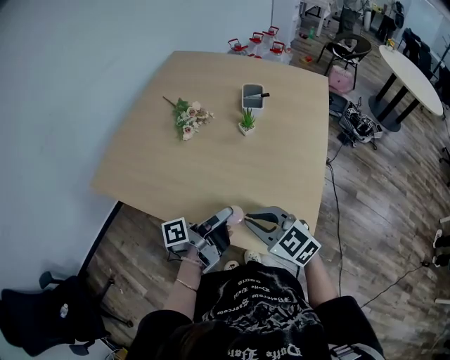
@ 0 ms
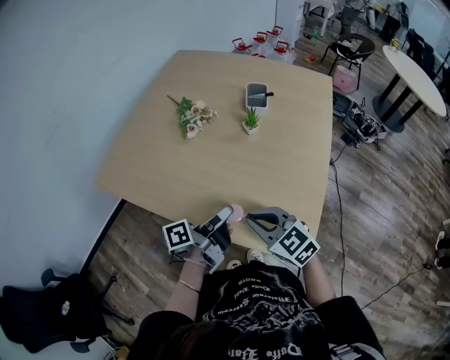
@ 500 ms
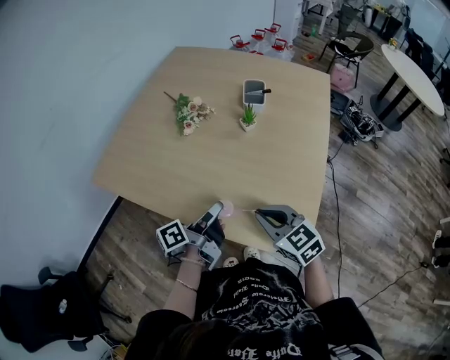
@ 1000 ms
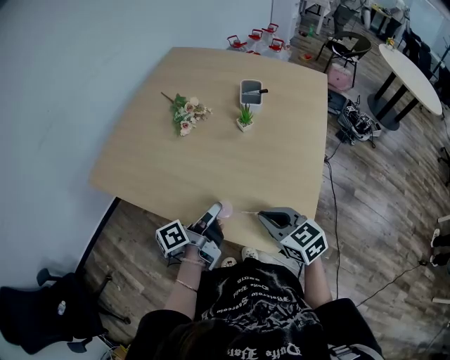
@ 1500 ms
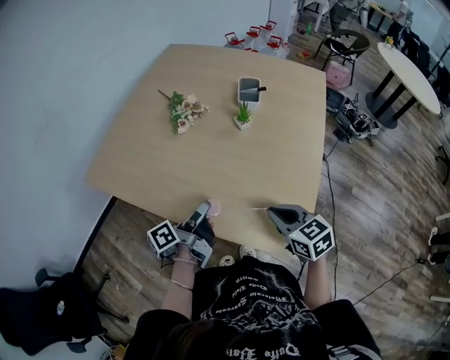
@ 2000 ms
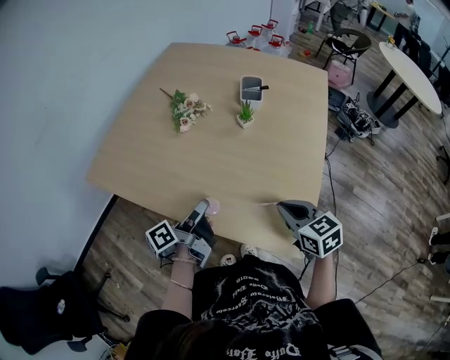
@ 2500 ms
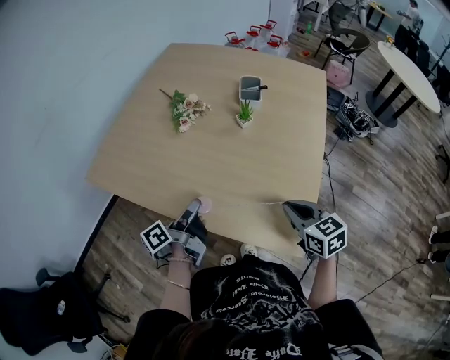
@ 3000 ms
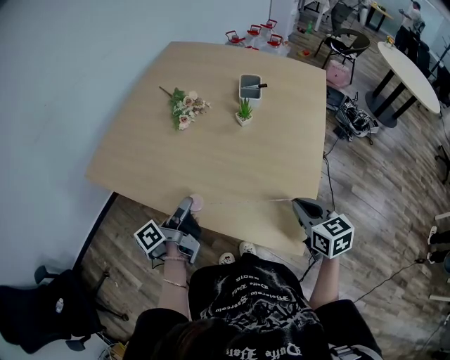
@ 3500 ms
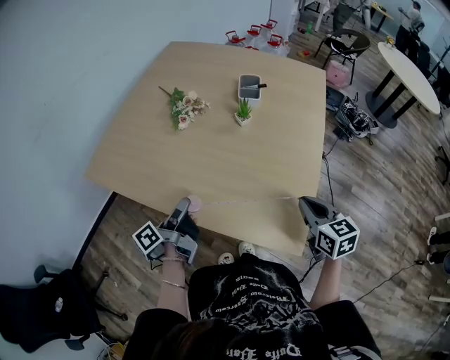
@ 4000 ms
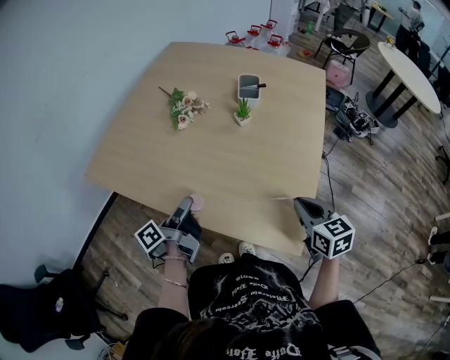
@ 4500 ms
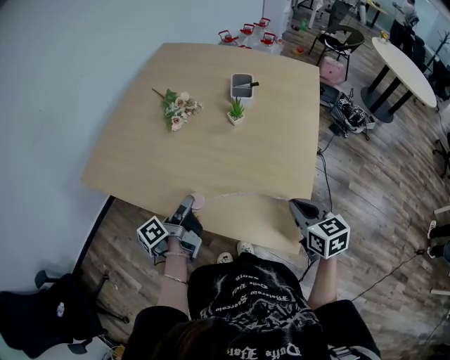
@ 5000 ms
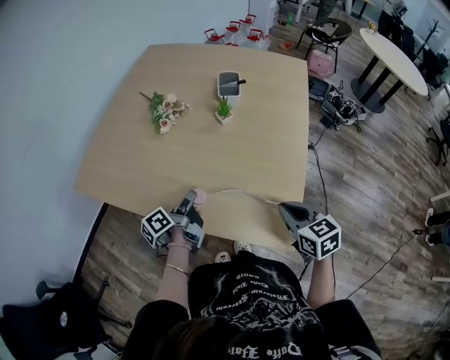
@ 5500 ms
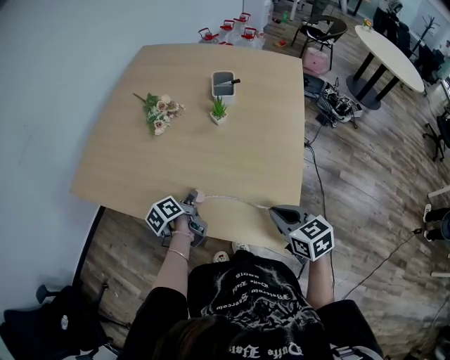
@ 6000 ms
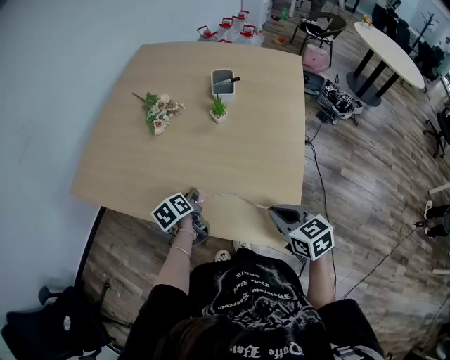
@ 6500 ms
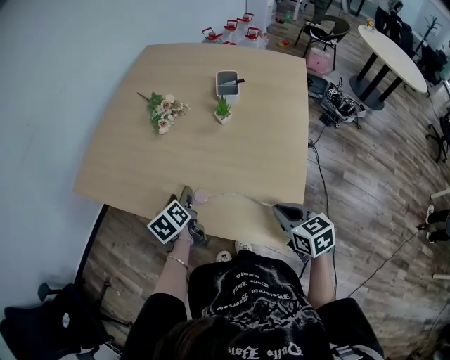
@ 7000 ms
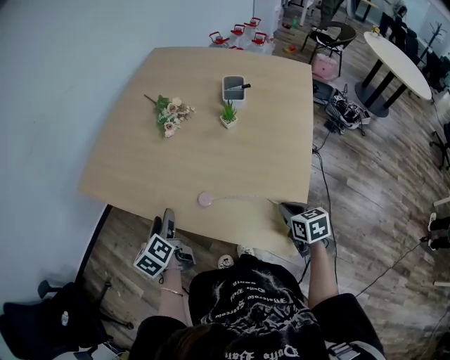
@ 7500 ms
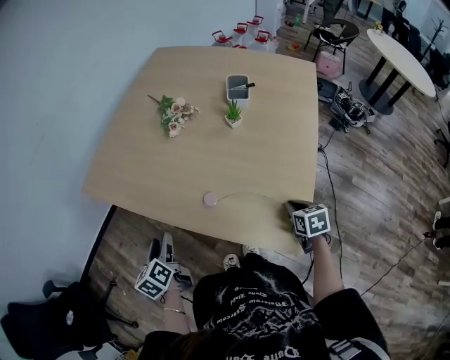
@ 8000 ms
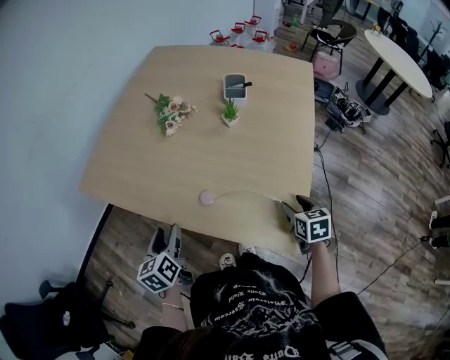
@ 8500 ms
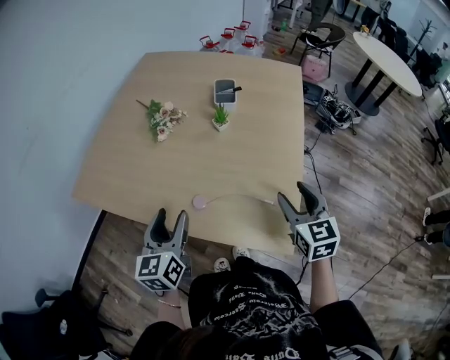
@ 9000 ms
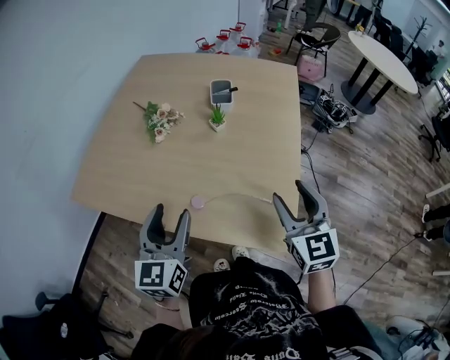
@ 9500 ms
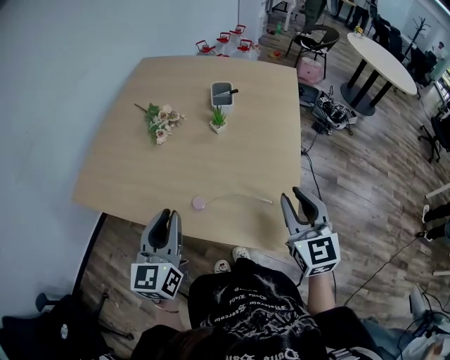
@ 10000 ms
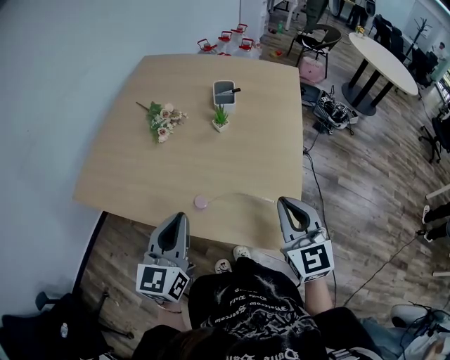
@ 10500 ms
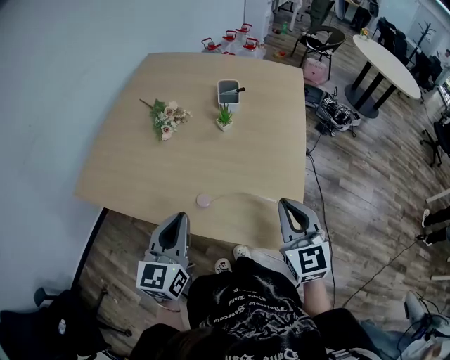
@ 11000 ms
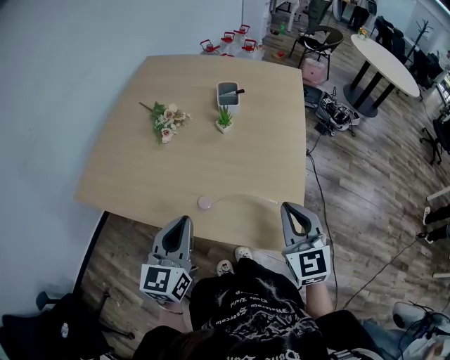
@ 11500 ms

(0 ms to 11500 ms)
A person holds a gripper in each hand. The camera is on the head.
0 ms - 2000 ms: The left gripper shifts roughly 5 cm to the left, while the right gripper travels to the right by approximately 10 cm, and changes its angle by approximately 20 degrees.
2000 ms - 4000 ms: The left gripper moves to the left, approximately 5 cm. Meanwhile the right gripper heads to the right, covering approximately 10 cm.
4000 ms - 6000 ms: The right gripper moves roughly 5 cm; the left gripper is displaced downward, to the right and forward by some 15 cm, and changes its angle by some 30 degrees.
6000 ms - 7500 ms: The left gripper heads to the left and upward, covering about 15 cm, swivels roughly 30 degrees, and opens, while the right gripper moves downward, roughly 5 cm.
7500 ms - 9500 ms: The left gripper shifts roughly 20 cm upward and to the right, and swivels approximately 50 degrees. The right gripper travels upward by some 20 cm, points its fingers roughly 30 degrees further upward, and opens.
9500 ms - 11500 ms: The left gripper closes its fingers. Meanwhile the right gripper closes its fingers.

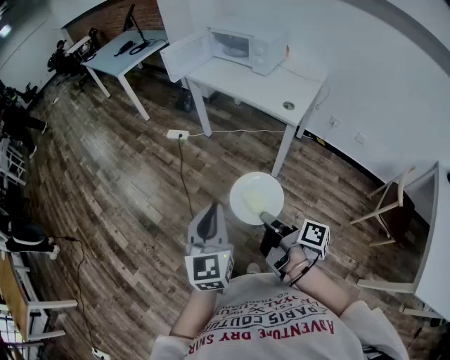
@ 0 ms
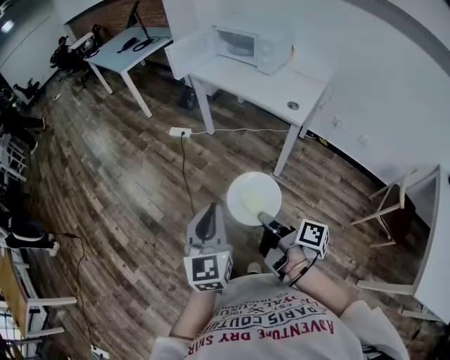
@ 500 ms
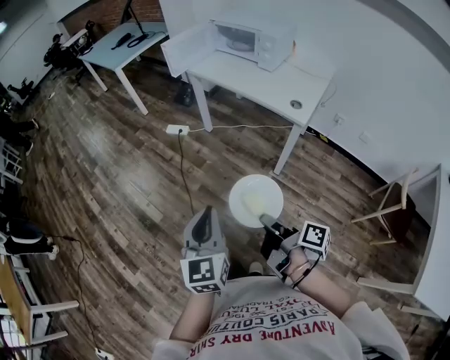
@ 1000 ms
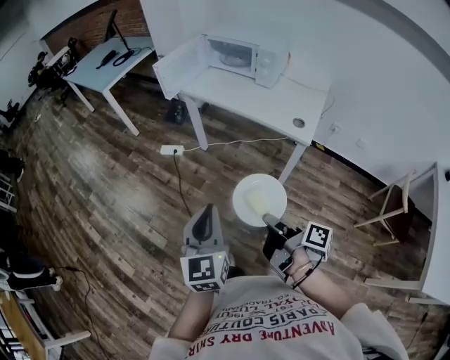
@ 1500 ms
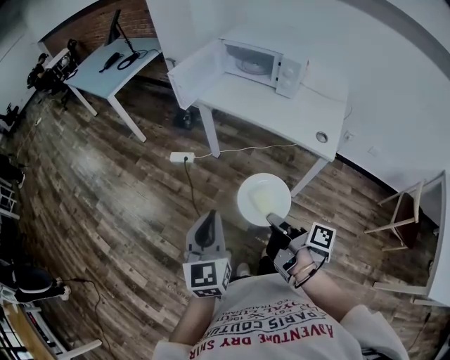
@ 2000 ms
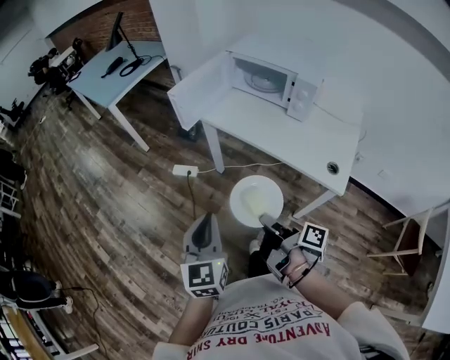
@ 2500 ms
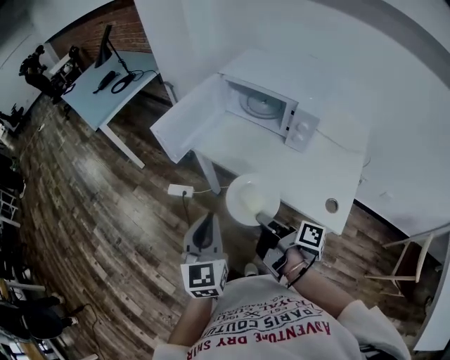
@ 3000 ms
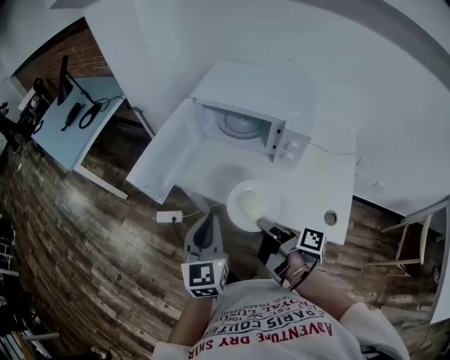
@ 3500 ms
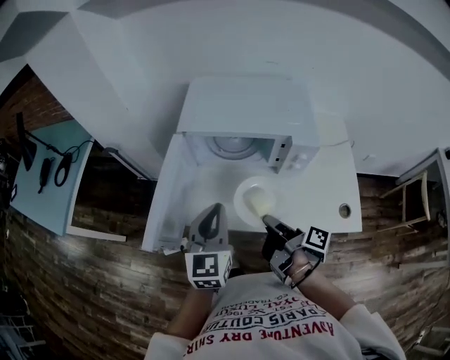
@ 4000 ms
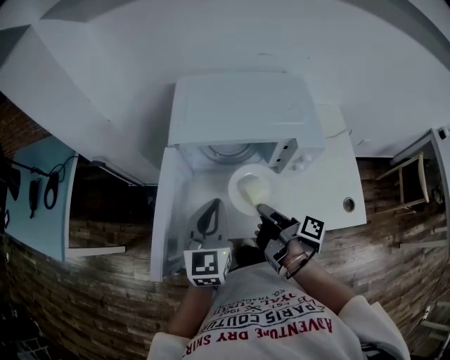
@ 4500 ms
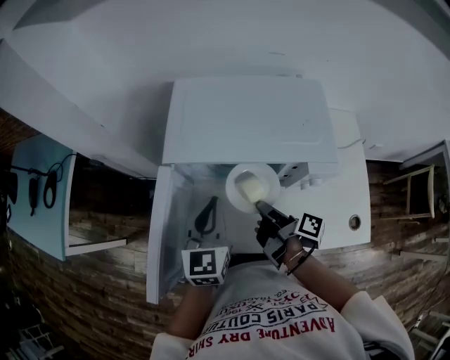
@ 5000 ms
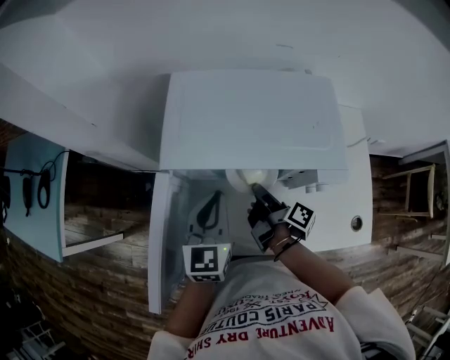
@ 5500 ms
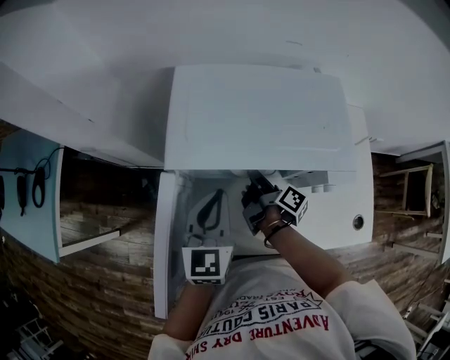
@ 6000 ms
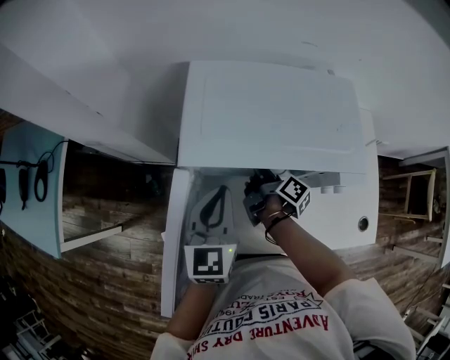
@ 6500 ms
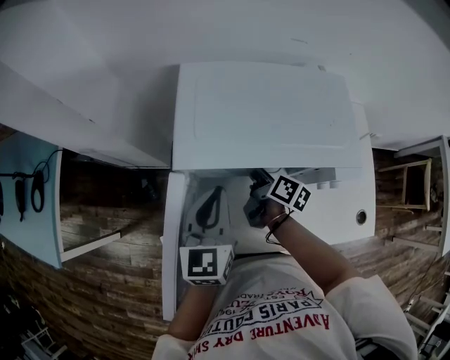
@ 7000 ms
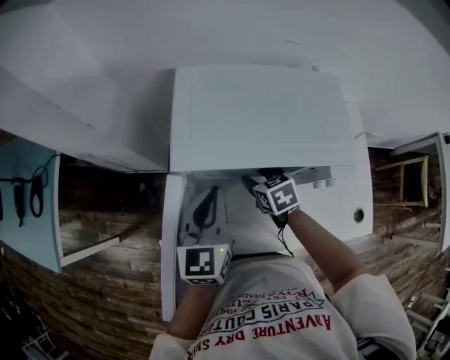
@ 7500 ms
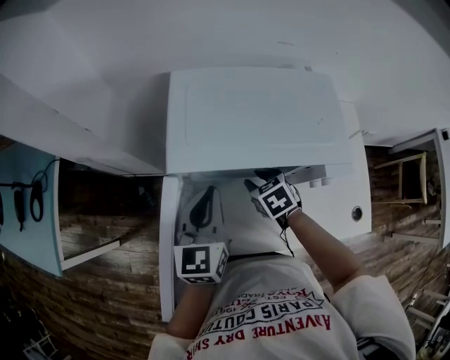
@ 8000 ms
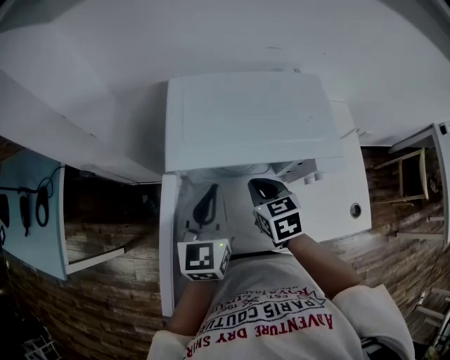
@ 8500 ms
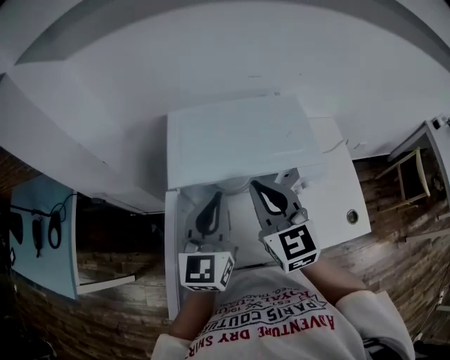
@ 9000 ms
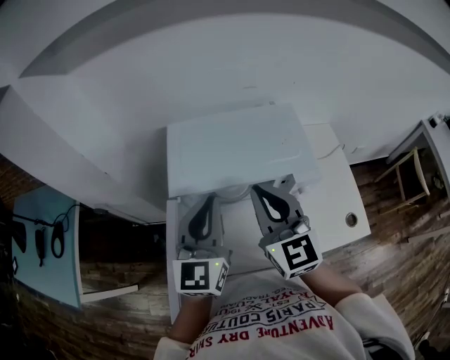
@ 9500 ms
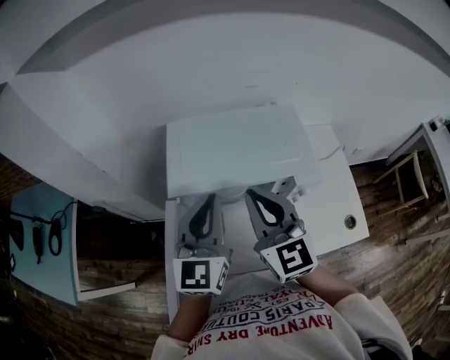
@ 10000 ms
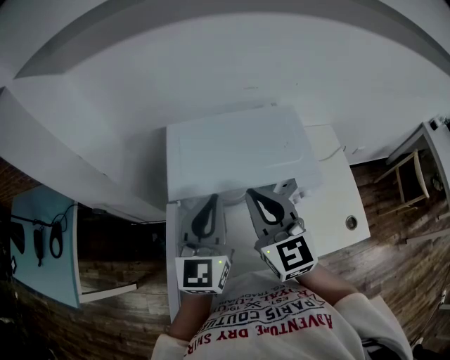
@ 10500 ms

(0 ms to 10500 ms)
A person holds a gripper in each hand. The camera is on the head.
0 ms - 2000 ms: The left gripper ends up approximately 30 cm from where it was.
2000 ms - 4000 ms: The left gripper changes place by approximately 60 cm, and rotates some 30 degrees.
4000 ms - 6500 ms: The left gripper moves some 20 cm.
8500 ms - 10500 ms: The left gripper travels upward by roughly 10 cm.

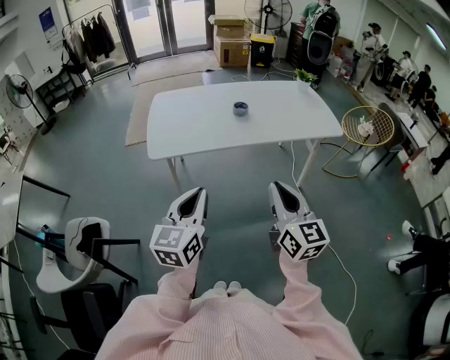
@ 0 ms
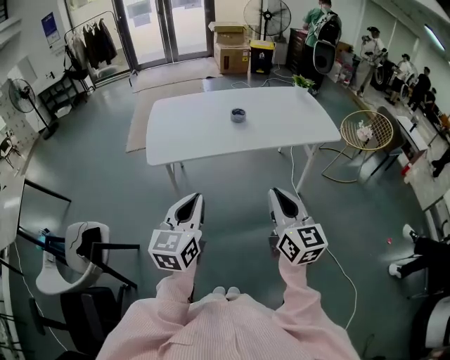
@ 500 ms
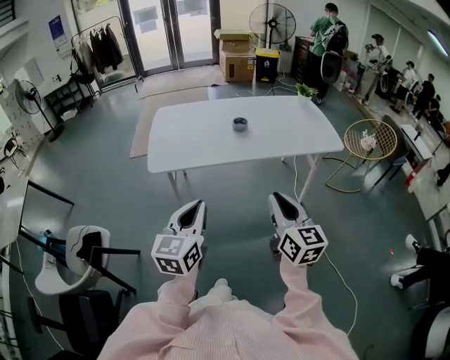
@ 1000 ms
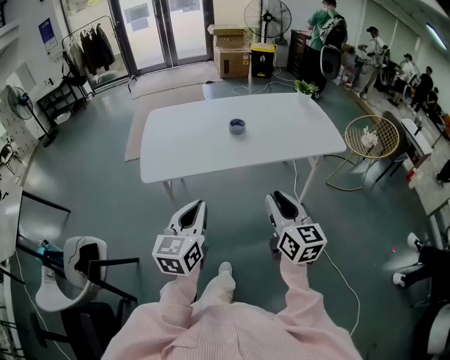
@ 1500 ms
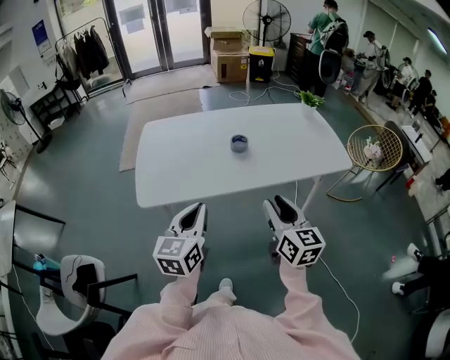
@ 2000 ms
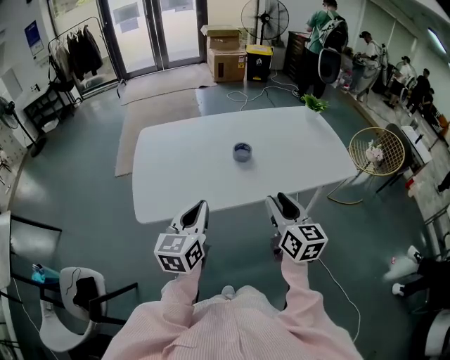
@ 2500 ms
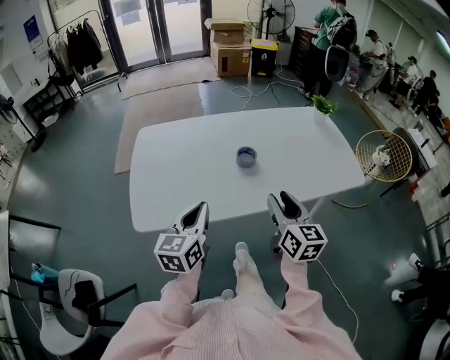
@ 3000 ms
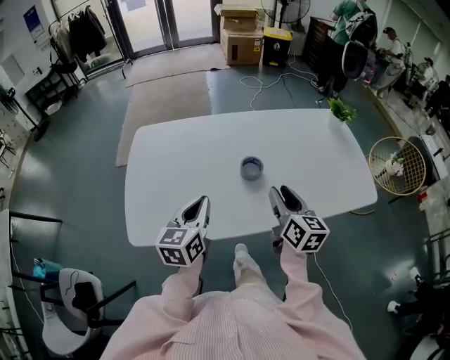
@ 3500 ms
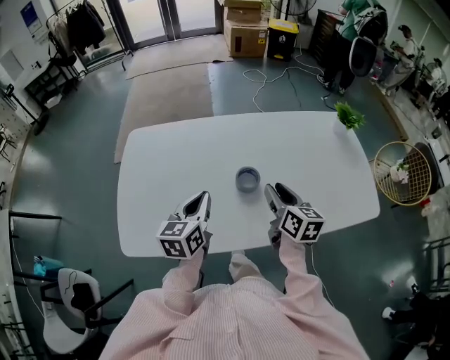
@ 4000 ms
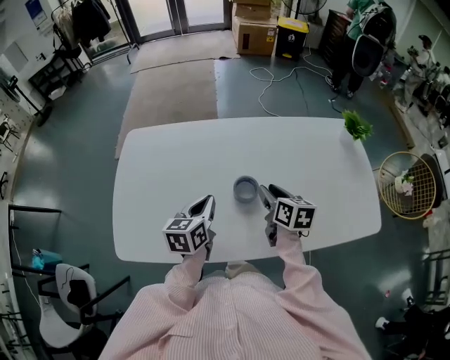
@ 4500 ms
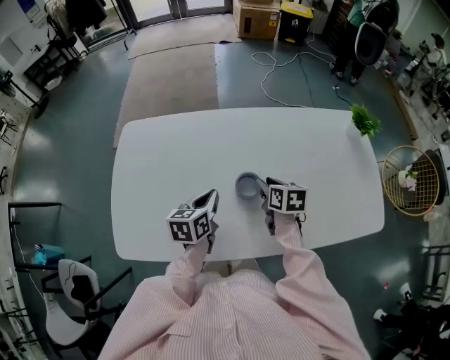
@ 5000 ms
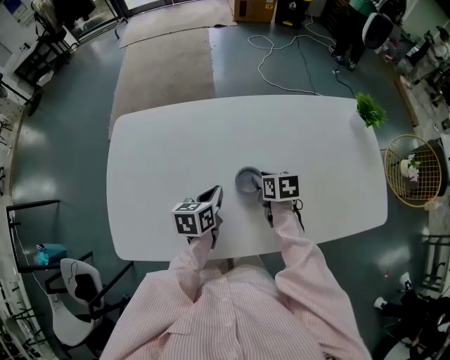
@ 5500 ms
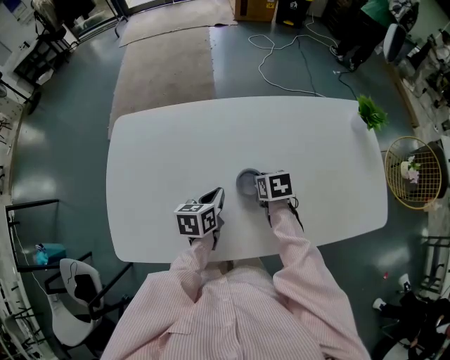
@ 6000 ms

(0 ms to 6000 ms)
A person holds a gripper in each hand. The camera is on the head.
0 ms - 2000 ms: The two grippers go approximately 20 cm forward. The right gripper opens its fingers.
2000 ms - 4000 ms: The grippers both shift forward by approximately 35 cm.
4000 ms - 6000 ms: The grippers both shift downward and forward by some 20 cm. The left gripper swivels approximately 20 degrees, while the right gripper tips its fingers downward by about 40 degrees.
